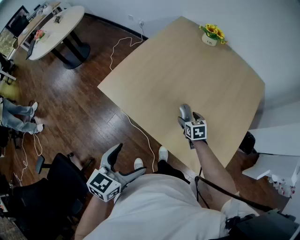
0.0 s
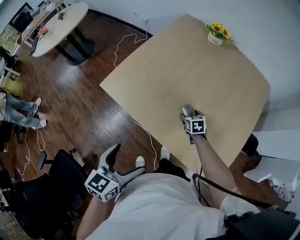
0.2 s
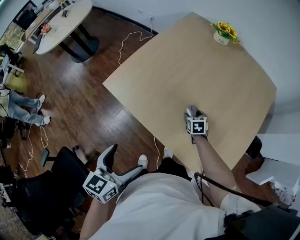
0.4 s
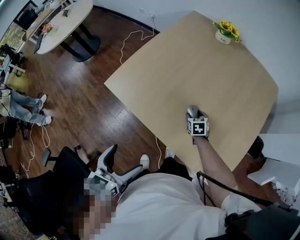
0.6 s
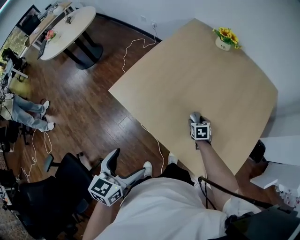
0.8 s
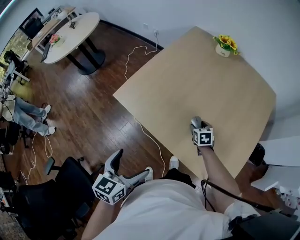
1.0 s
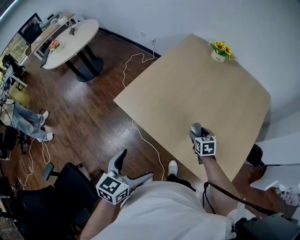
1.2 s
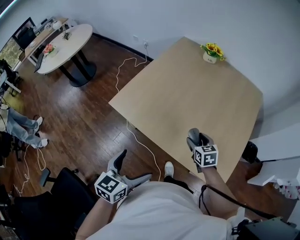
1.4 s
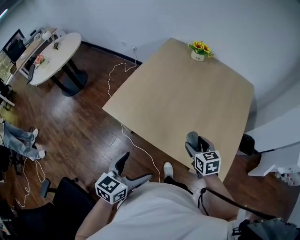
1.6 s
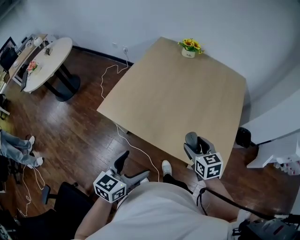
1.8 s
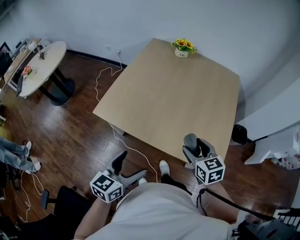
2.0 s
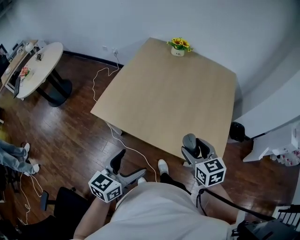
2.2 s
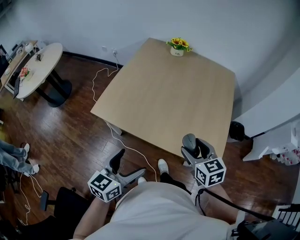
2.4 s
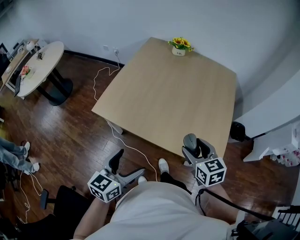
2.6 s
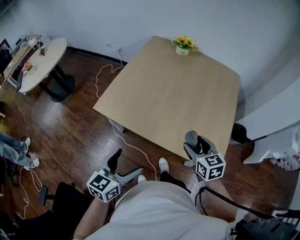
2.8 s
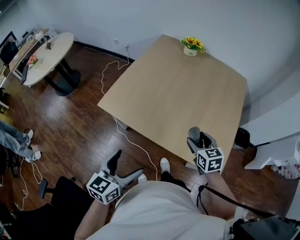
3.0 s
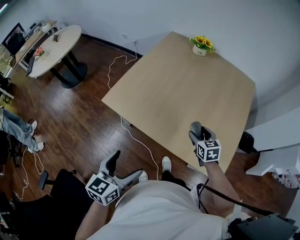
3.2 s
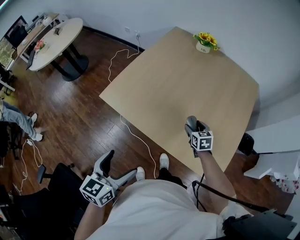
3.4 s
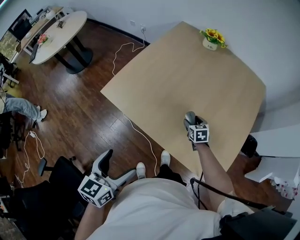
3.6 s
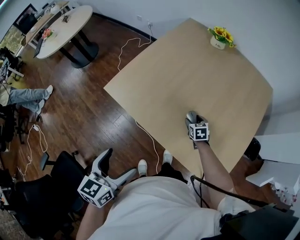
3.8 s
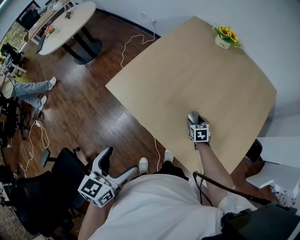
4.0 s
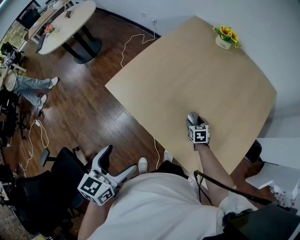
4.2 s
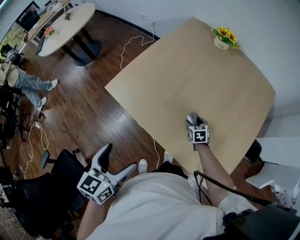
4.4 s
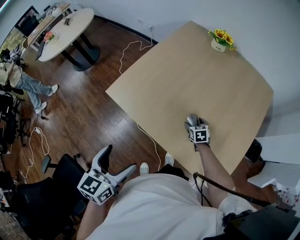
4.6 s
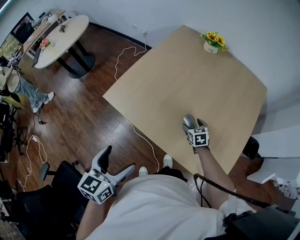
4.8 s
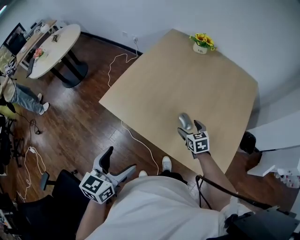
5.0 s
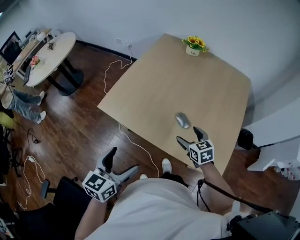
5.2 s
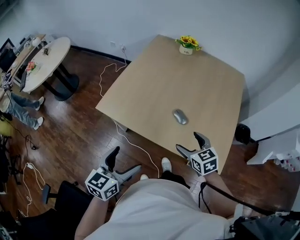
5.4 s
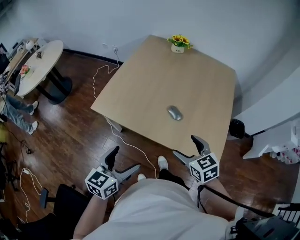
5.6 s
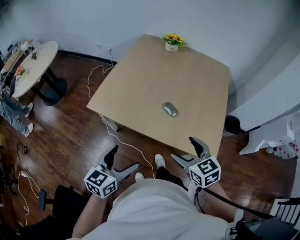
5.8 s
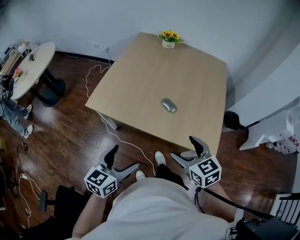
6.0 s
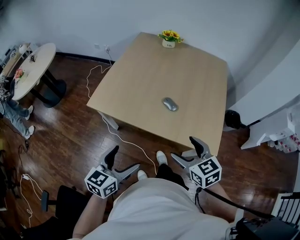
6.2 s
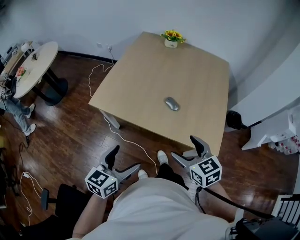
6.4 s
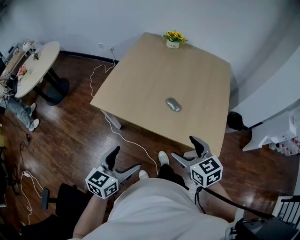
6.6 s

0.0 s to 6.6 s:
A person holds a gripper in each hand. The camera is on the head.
0.0 to 1.6 s: The right gripper moves upward and backward, about 20 cm.
1.6 to 3.2 s: The right gripper is displaced forward by roughly 5 cm.
3.2 to 5.0 s: The right gripper travels downward and back again, about 20 cm each way.
5.0 to 6.6 s: The left gripper travels backward by roughly 10 cm; the right gripper moves backward and upward, approximately 30 cm.

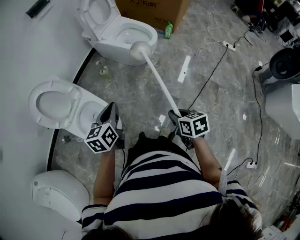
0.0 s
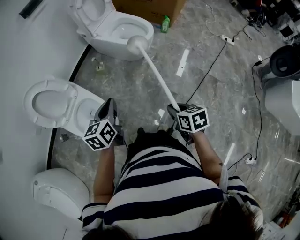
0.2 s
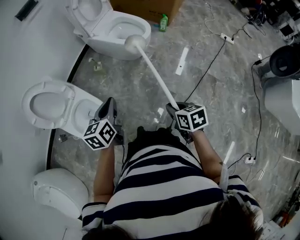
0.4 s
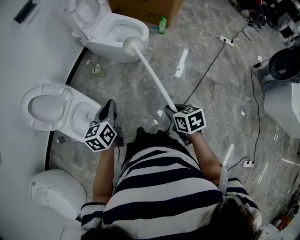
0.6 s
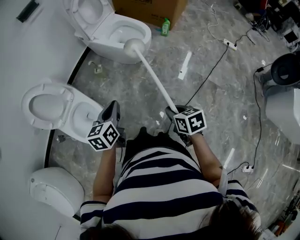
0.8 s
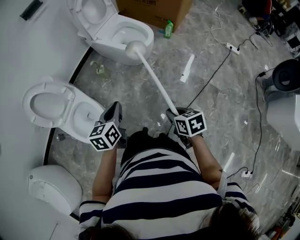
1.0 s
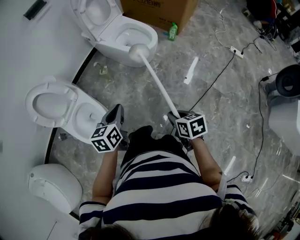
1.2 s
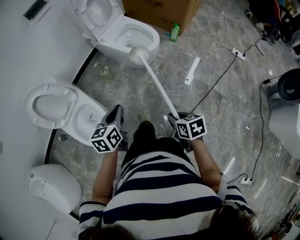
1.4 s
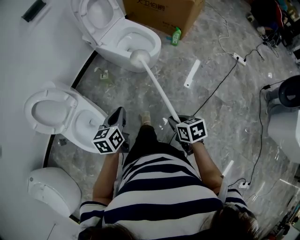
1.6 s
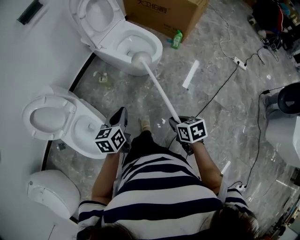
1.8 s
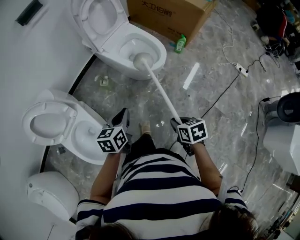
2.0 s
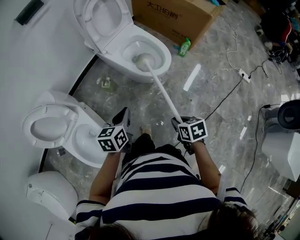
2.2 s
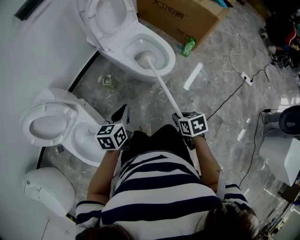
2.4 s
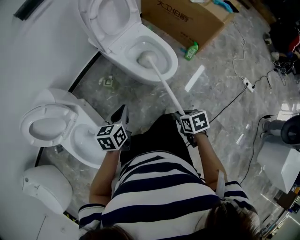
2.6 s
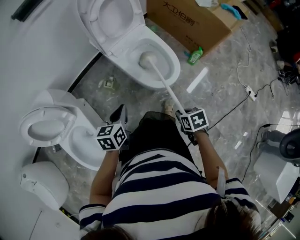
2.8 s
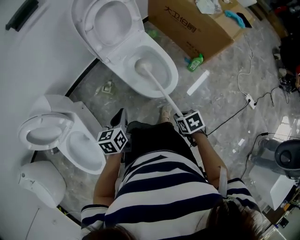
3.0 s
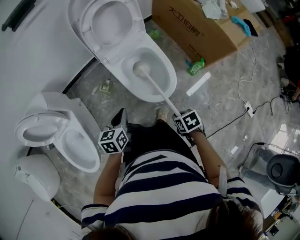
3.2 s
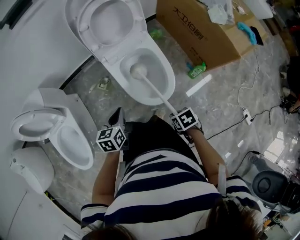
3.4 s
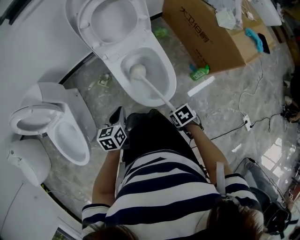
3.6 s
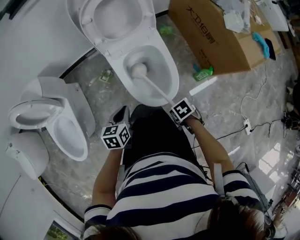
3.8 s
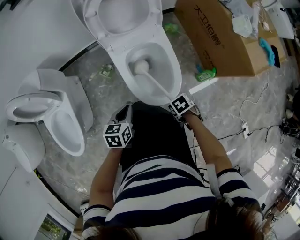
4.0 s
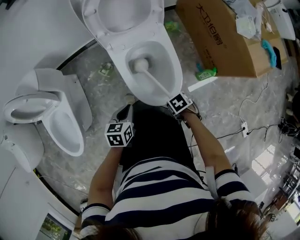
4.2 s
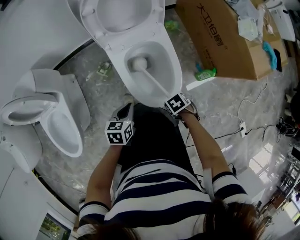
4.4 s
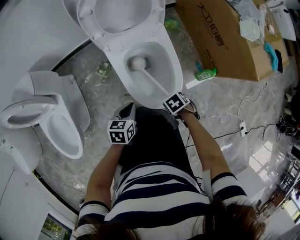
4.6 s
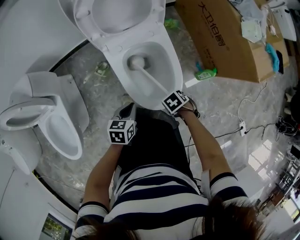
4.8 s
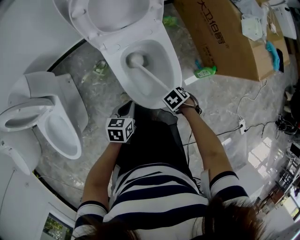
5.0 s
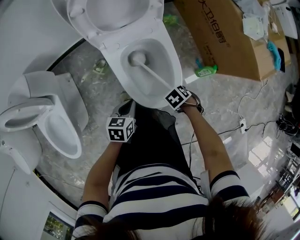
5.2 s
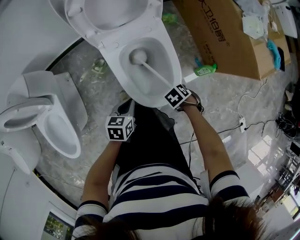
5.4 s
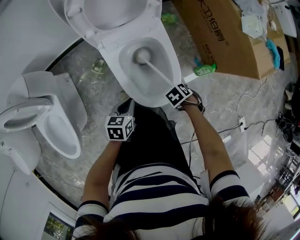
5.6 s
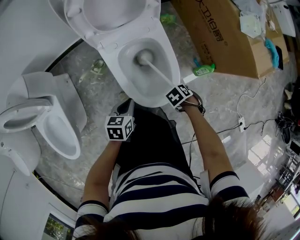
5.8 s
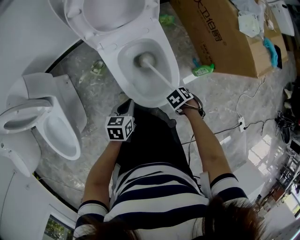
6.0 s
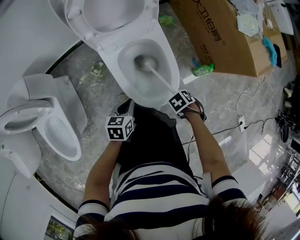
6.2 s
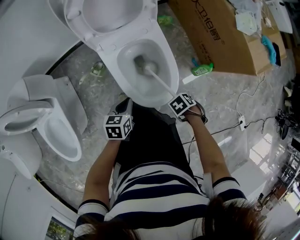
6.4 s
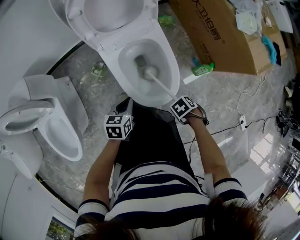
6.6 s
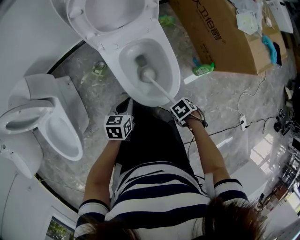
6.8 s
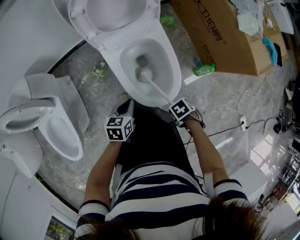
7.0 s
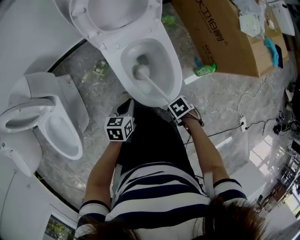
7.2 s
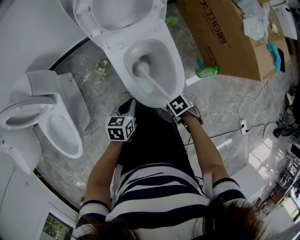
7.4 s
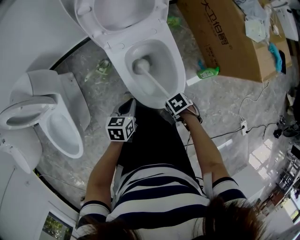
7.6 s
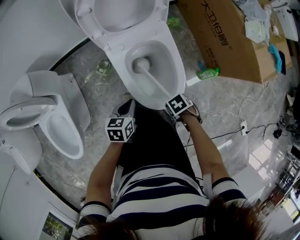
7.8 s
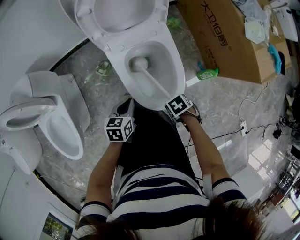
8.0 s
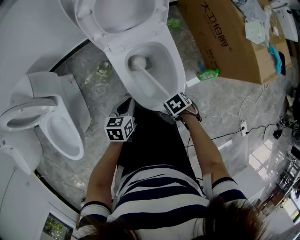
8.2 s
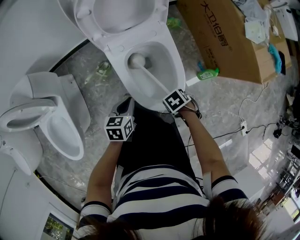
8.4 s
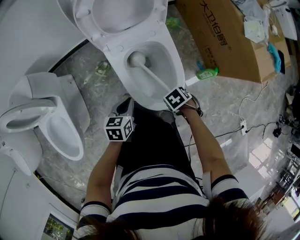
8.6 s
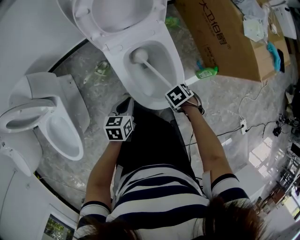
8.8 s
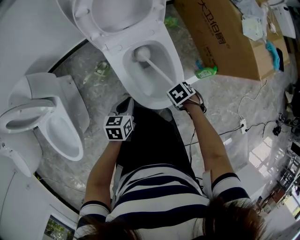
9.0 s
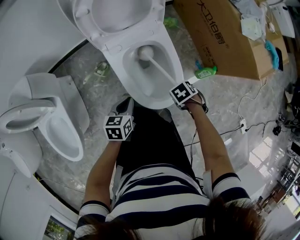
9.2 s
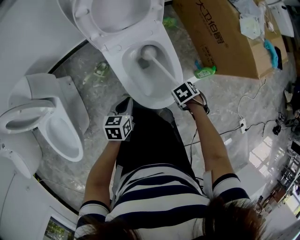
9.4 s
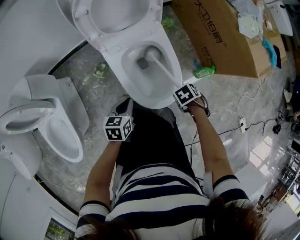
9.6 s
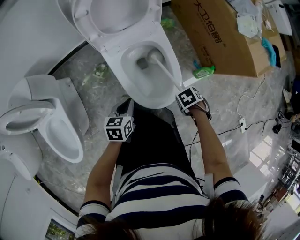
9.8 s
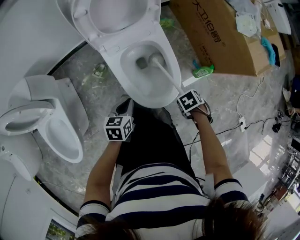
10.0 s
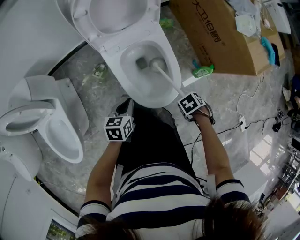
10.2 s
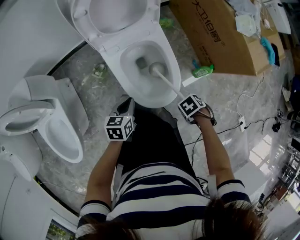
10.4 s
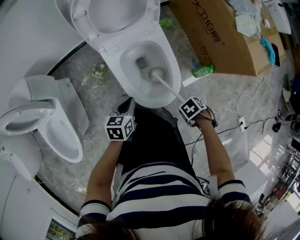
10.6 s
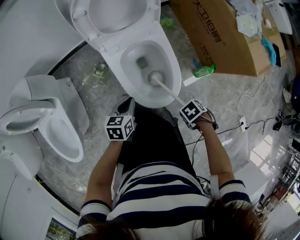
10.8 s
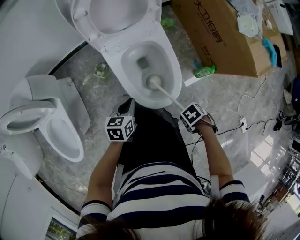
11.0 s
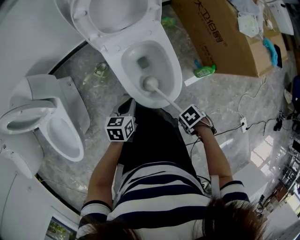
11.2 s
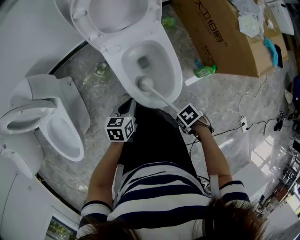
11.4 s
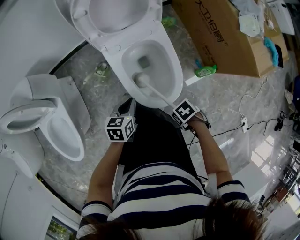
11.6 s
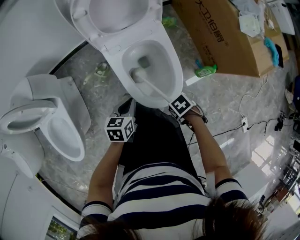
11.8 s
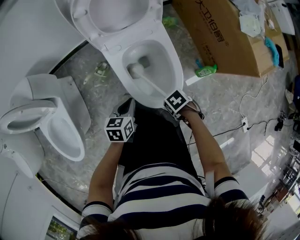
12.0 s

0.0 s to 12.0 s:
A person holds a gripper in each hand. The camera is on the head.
0.0 to 1.6 s: The left gripper moves approximately 15 cm.
1.6 to 3.0 s: The left gripper ends up roughly 35 cm from where it was.
3.0 to 4.4 s: The left gripper shifts by roughly 20 cm.
4.4 to 6.0 s: The left gripper ends up about 5 cm from where it was.

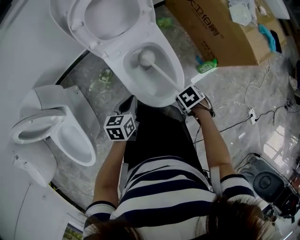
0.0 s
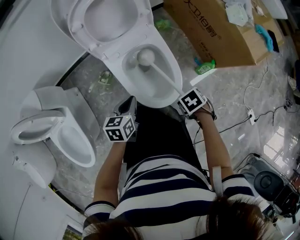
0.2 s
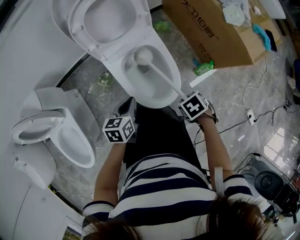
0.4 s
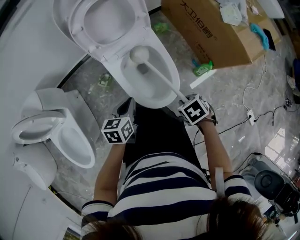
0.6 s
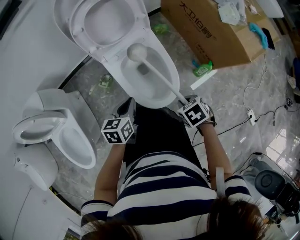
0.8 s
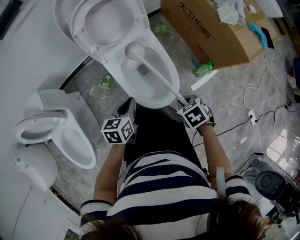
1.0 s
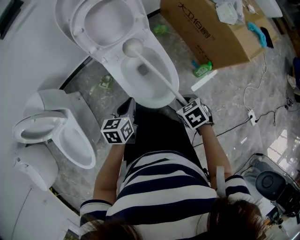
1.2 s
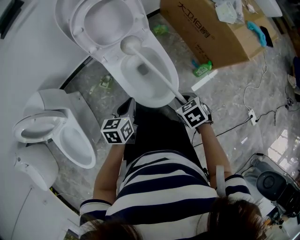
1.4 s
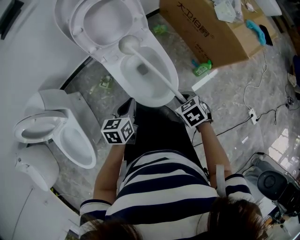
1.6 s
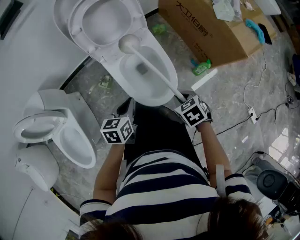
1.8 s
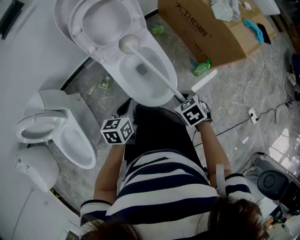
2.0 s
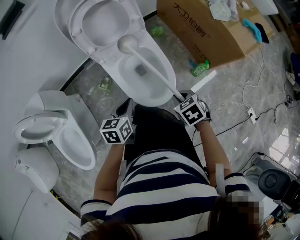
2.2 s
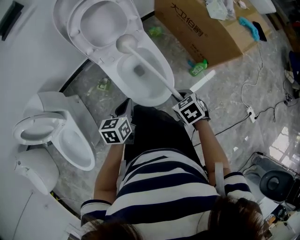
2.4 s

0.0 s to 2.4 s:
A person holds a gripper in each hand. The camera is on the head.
0.0 to 1.2 s: The left gripper travels upward by roughly 5 cm.

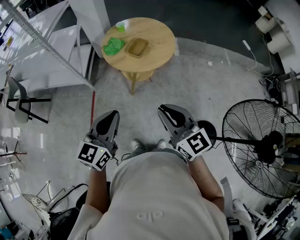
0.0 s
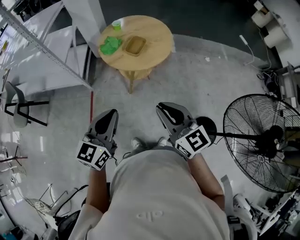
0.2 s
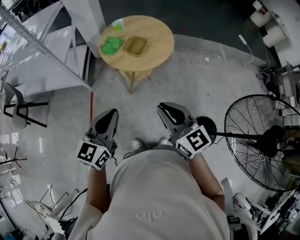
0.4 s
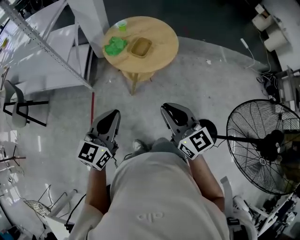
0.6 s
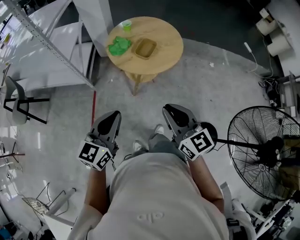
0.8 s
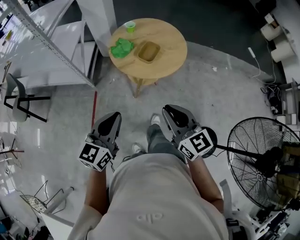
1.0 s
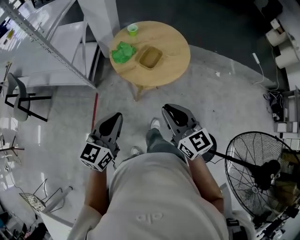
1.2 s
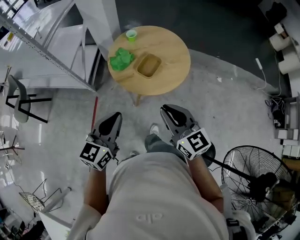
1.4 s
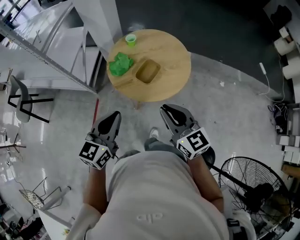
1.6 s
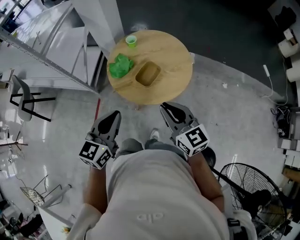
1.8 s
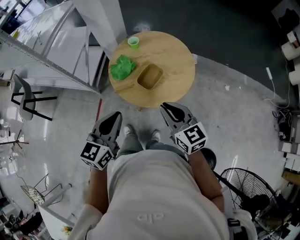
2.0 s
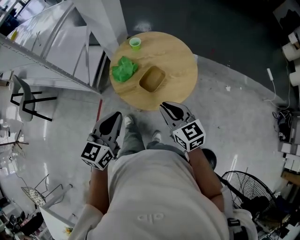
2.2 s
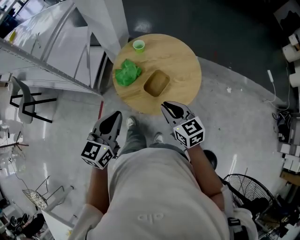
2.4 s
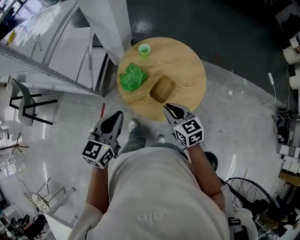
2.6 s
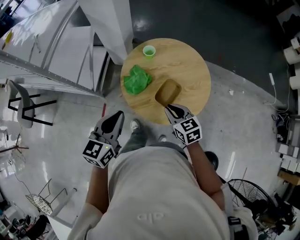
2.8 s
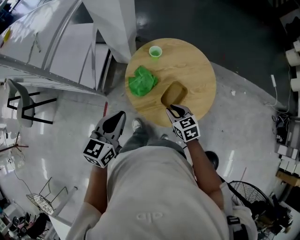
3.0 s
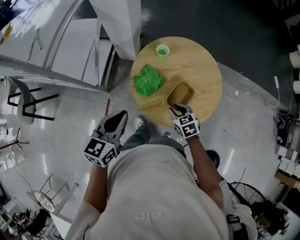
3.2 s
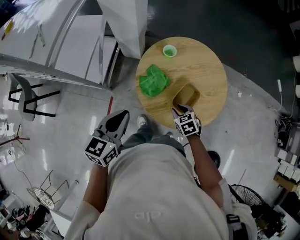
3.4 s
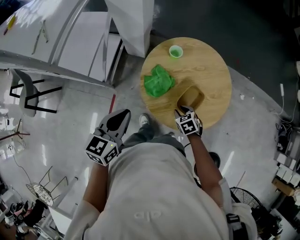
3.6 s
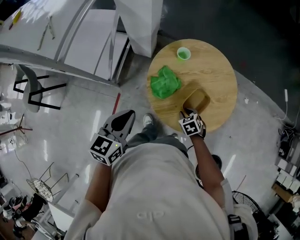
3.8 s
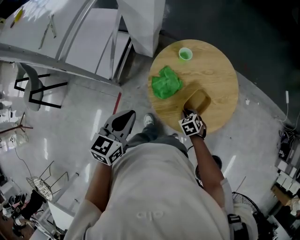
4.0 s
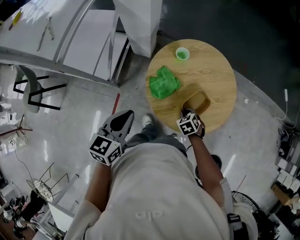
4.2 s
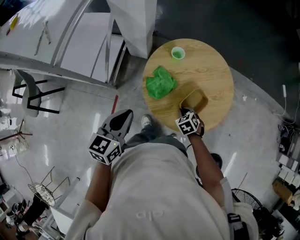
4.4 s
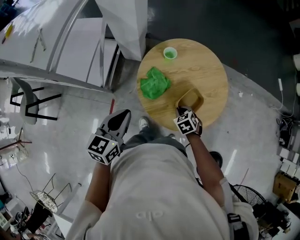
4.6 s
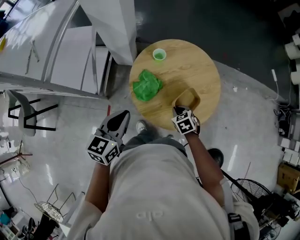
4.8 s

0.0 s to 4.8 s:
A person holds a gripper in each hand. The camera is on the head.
0.0 to 1.6 s: The two grippers go some 25 cm forward.
1.6 to 3.2 s: The left gripper shifts some 30 cm forward and to the left. Meanwhile the right gripper heads downward and forward, covering about 35 cm, and tips its fingers downward by about 40 degrees.
3.2 to 4.8 s: The right gripper reaches about 10 cm downward, then returns, and closes up.
